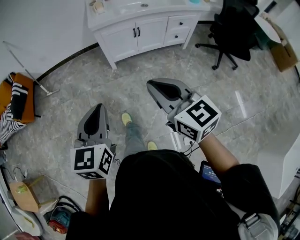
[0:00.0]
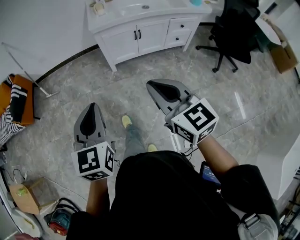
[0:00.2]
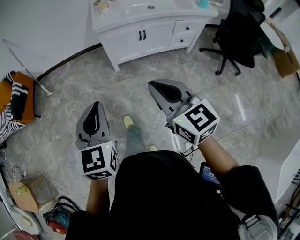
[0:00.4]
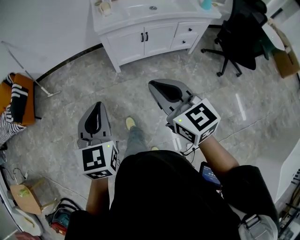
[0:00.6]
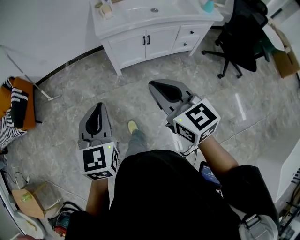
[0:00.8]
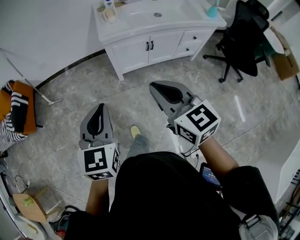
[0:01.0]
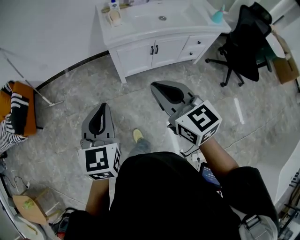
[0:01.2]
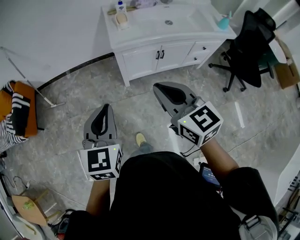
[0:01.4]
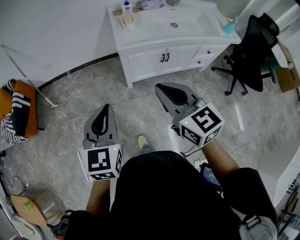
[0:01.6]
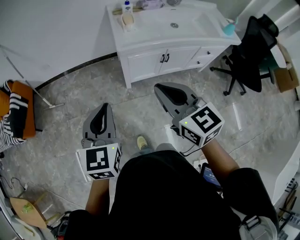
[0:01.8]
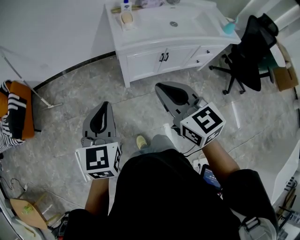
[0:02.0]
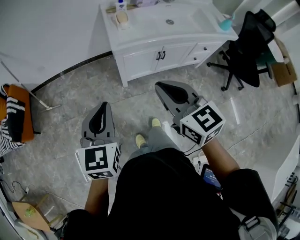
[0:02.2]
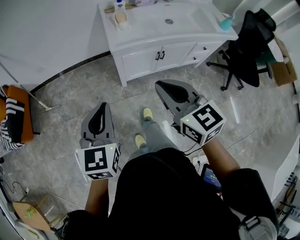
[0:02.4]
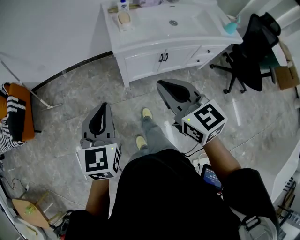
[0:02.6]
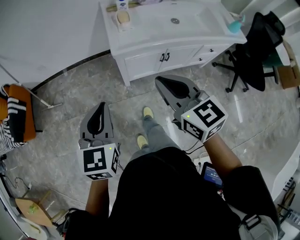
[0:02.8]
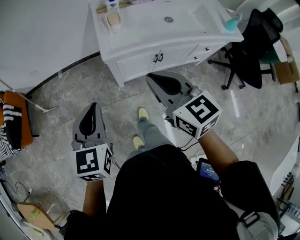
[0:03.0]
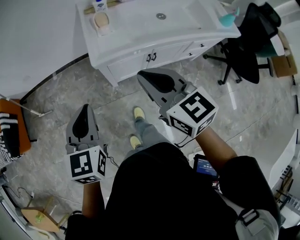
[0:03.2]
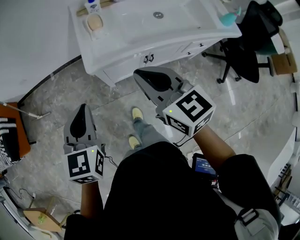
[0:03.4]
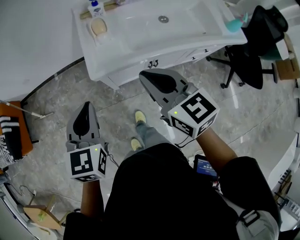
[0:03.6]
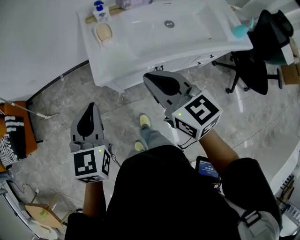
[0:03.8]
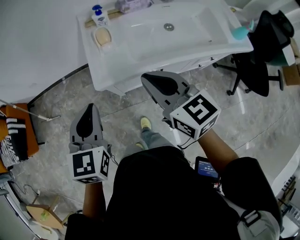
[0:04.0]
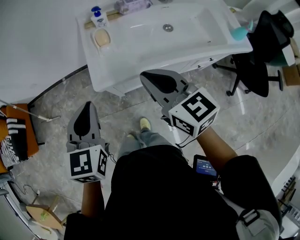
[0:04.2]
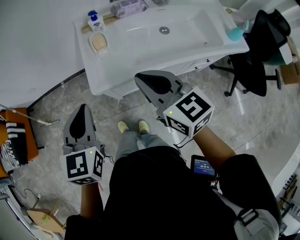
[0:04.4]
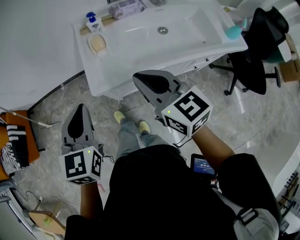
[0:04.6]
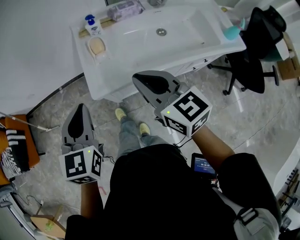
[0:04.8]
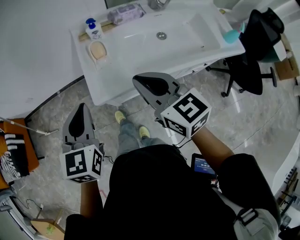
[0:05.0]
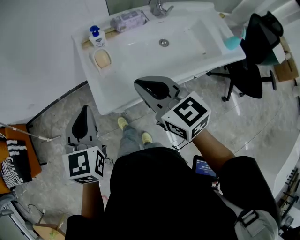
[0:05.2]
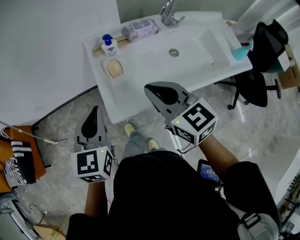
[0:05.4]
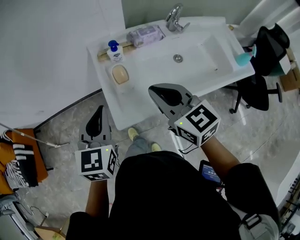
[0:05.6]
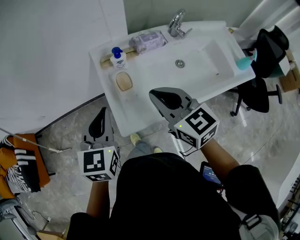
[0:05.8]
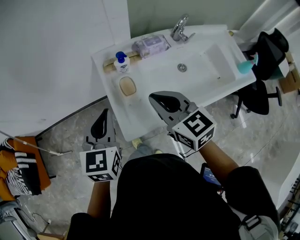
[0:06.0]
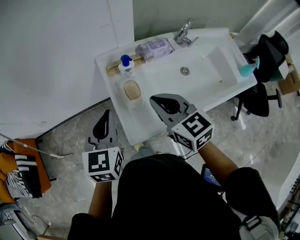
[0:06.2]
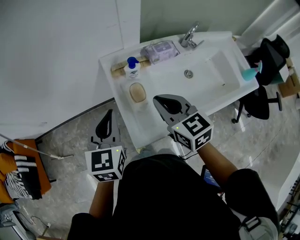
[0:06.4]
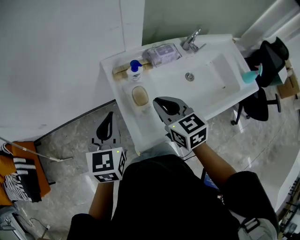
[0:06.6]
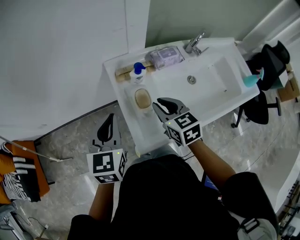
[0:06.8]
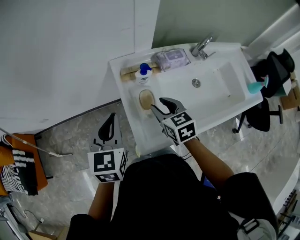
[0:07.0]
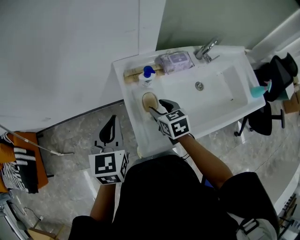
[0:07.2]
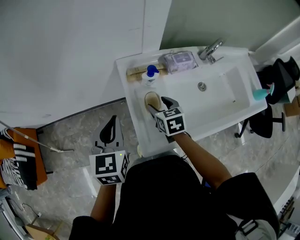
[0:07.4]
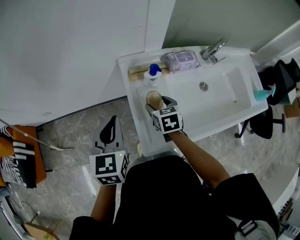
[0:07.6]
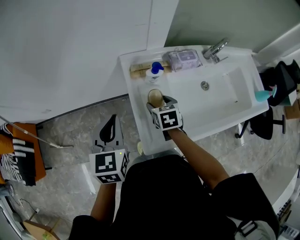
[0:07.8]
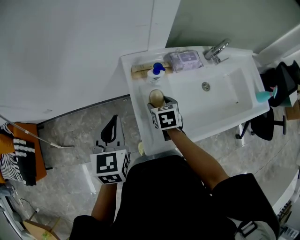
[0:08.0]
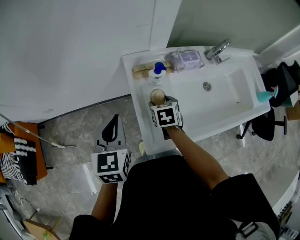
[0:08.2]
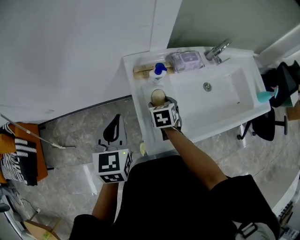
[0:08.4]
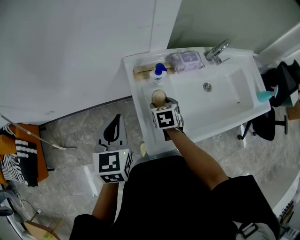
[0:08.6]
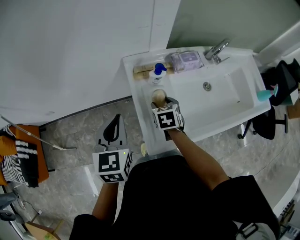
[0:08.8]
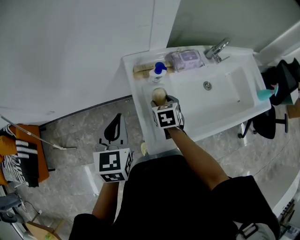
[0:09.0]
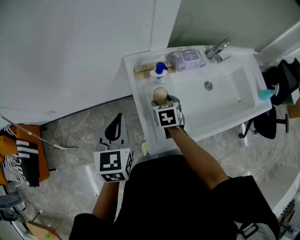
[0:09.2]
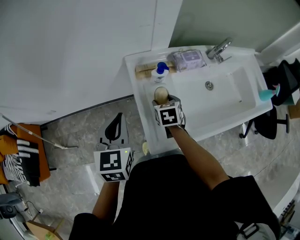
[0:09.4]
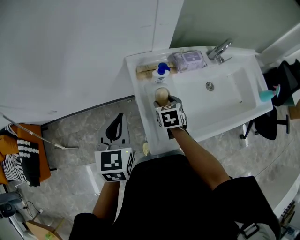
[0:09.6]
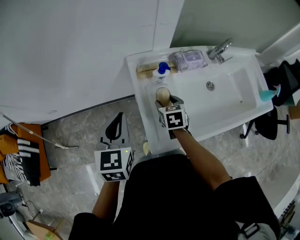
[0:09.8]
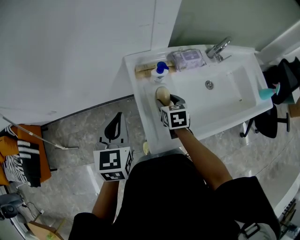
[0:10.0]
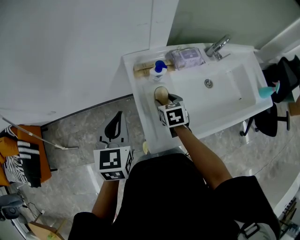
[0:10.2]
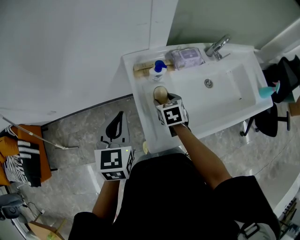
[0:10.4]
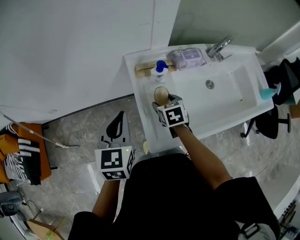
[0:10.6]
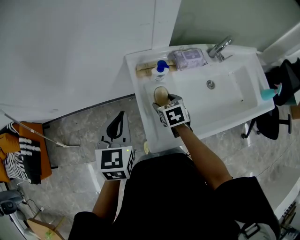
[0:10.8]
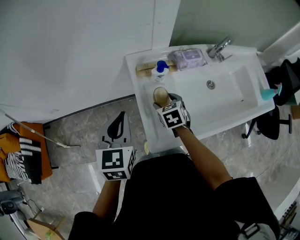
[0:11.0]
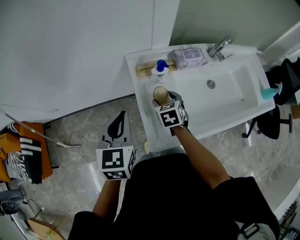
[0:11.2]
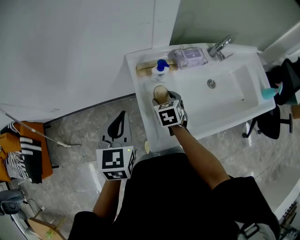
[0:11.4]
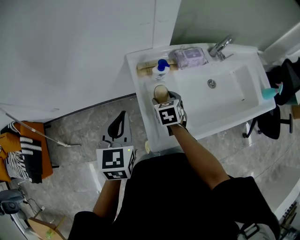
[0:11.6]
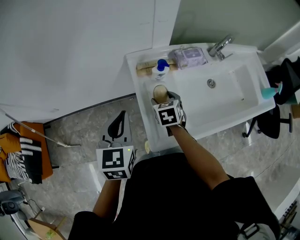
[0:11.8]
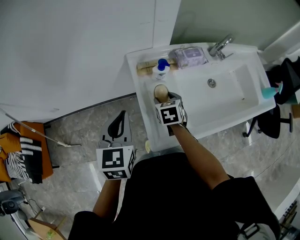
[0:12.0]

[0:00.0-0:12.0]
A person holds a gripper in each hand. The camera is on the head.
0:00.0 to 0:01.6: The grippers both shift forward by some 30 cm.
0:01.6 to 0:03.0: Both grippers travel together forward, some 15 cm.
0:03.0 to 0:04.4: Both grippers travel together forward and to the right, roughly 15 cm.
0:04.4 to 0:06.0: The grippers both shift forward by some 20 cm.
0:06.0 to 0:07.6: The right gripper goes about 25 cm downward and forward, turns by some 30 degrees, and opens. The left gripper travels to the left and forward by roughly 10 cm.
0:07.6 to 0:12.0: The grippers move only a little.

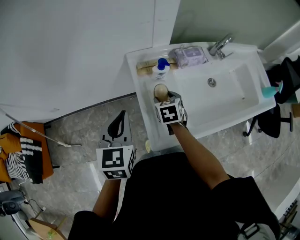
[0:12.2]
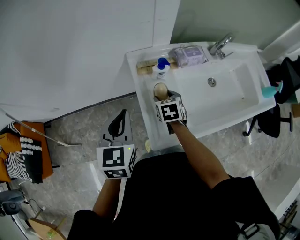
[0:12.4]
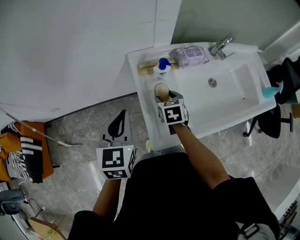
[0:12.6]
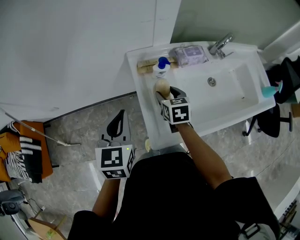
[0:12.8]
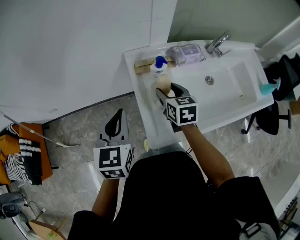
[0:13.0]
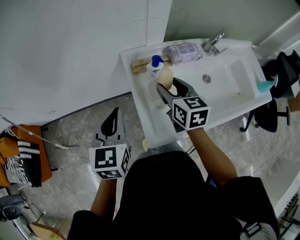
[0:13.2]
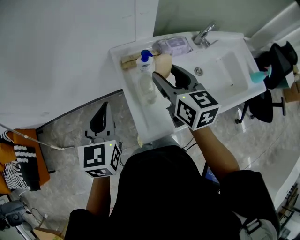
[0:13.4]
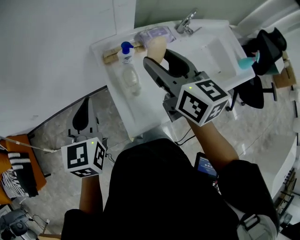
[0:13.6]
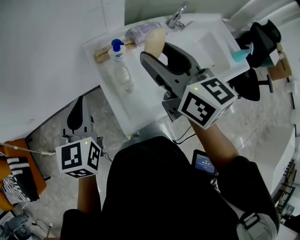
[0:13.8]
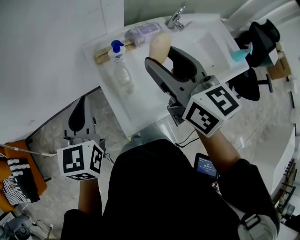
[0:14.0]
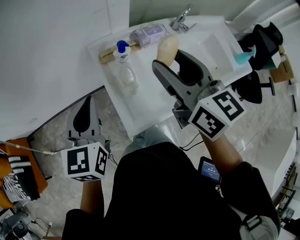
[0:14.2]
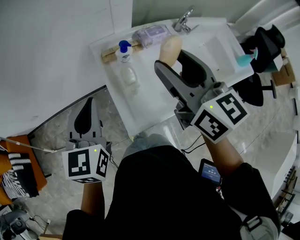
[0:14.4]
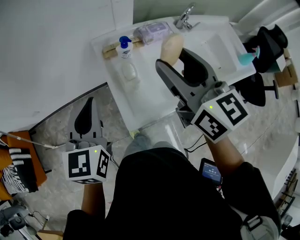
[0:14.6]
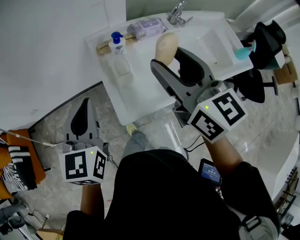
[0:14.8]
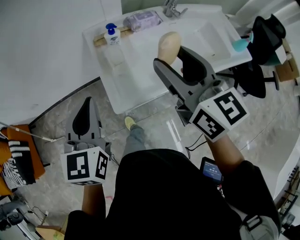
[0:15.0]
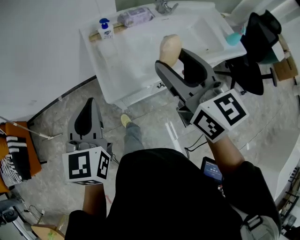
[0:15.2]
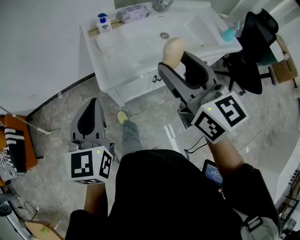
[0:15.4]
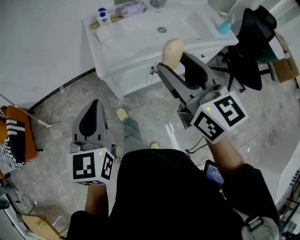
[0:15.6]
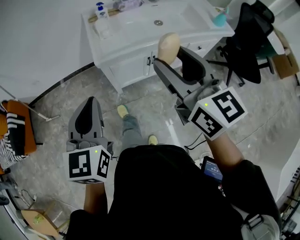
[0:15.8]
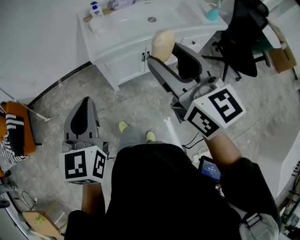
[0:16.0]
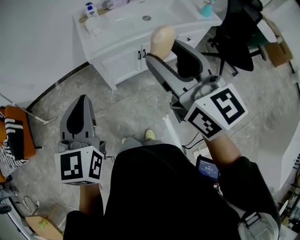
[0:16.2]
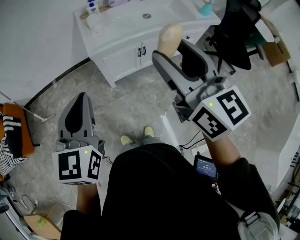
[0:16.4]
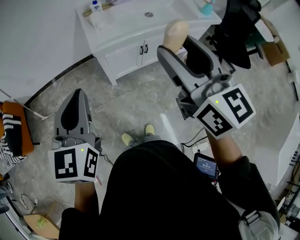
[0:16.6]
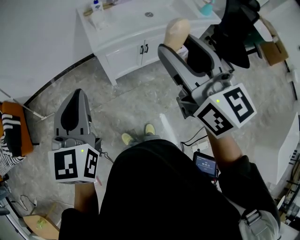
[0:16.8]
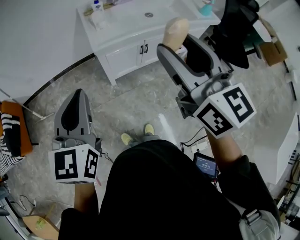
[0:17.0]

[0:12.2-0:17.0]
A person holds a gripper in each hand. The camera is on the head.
0:12.2 to 0:13.8: The right gripper heads upward, covering roughly 30 cm, and tips its fingers upward by roughly 40 degrees.
0:13.8 to 0:15.4: The two grippers go about 30 cm backward.
0:15.4 to 0:17.0: Both grippers travel together backward, approximately 20 cm.

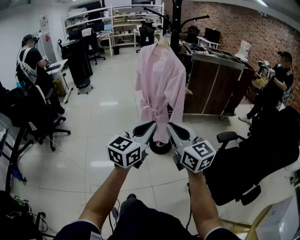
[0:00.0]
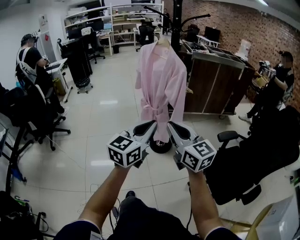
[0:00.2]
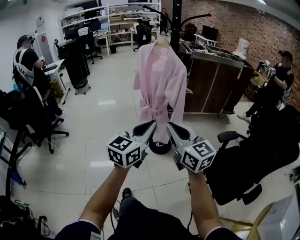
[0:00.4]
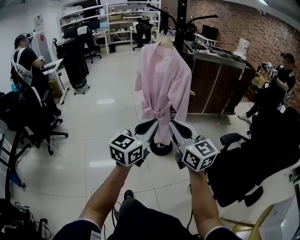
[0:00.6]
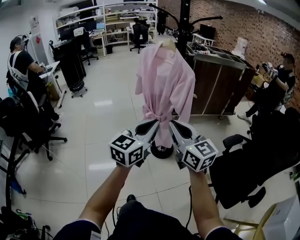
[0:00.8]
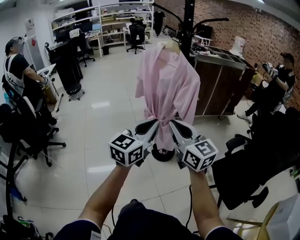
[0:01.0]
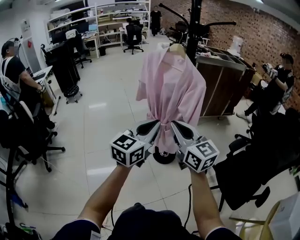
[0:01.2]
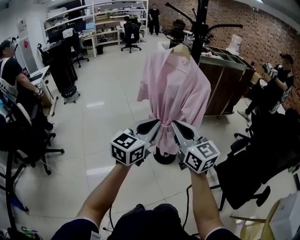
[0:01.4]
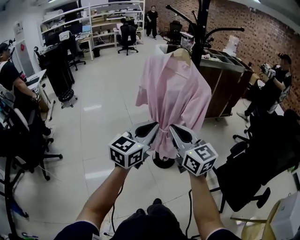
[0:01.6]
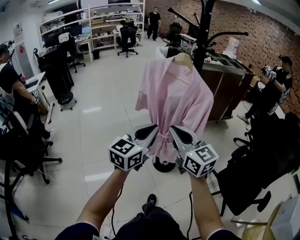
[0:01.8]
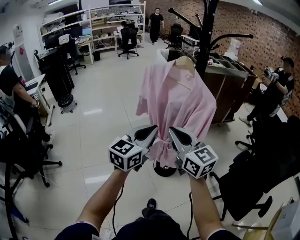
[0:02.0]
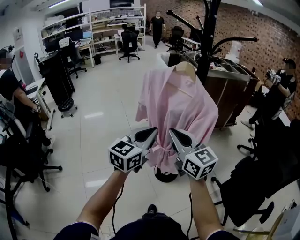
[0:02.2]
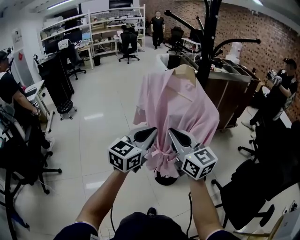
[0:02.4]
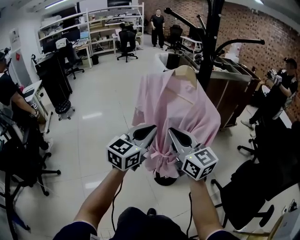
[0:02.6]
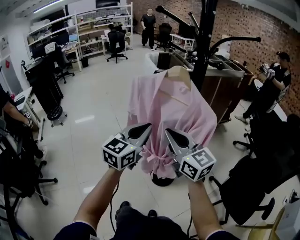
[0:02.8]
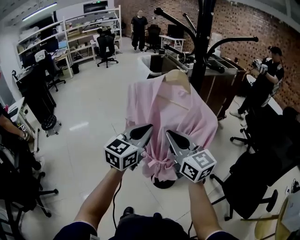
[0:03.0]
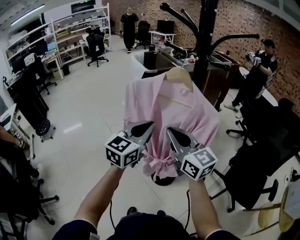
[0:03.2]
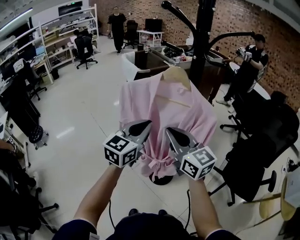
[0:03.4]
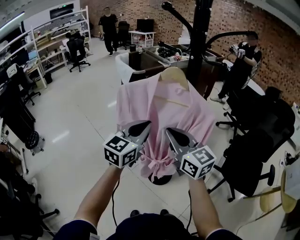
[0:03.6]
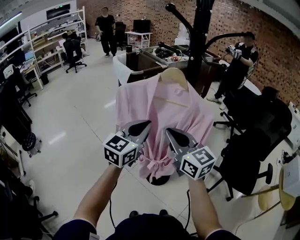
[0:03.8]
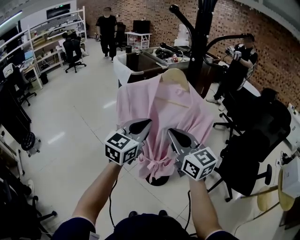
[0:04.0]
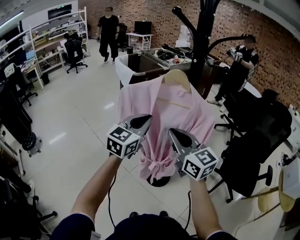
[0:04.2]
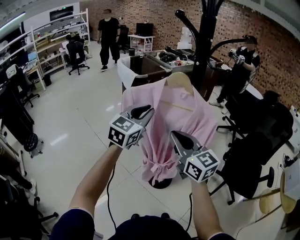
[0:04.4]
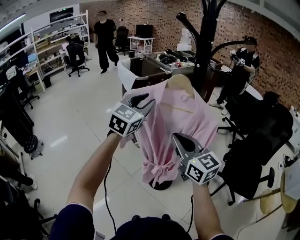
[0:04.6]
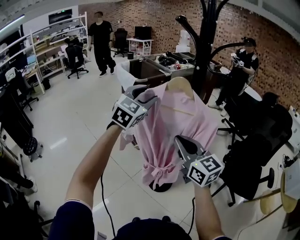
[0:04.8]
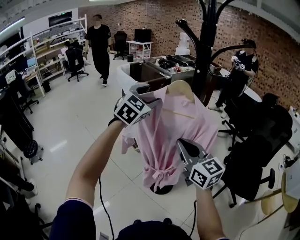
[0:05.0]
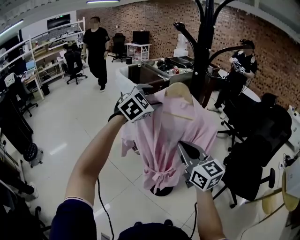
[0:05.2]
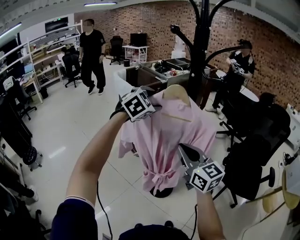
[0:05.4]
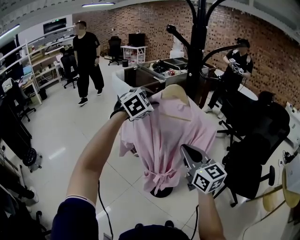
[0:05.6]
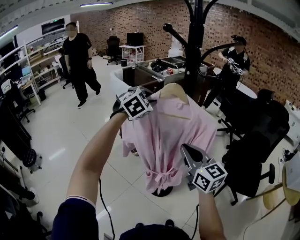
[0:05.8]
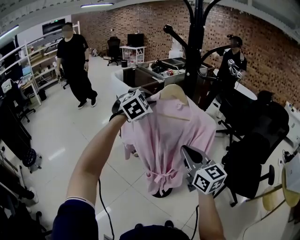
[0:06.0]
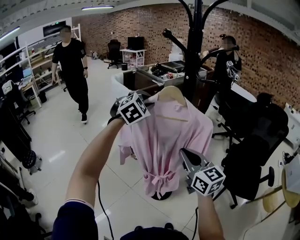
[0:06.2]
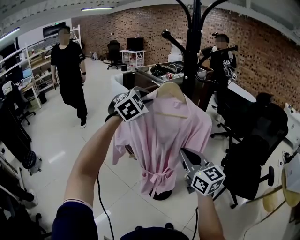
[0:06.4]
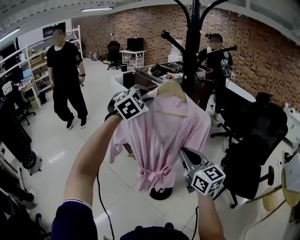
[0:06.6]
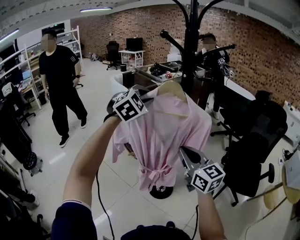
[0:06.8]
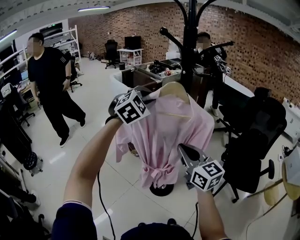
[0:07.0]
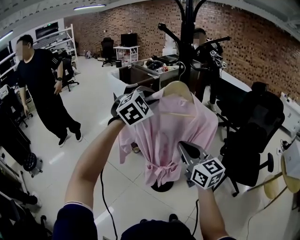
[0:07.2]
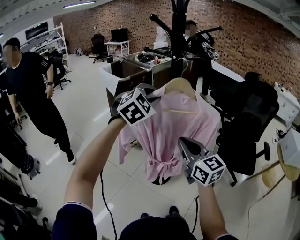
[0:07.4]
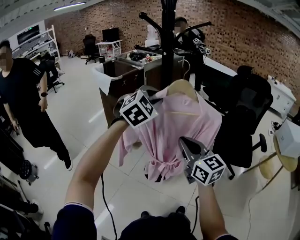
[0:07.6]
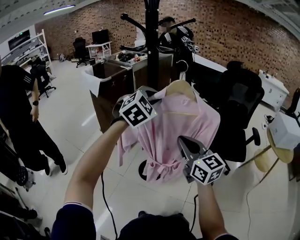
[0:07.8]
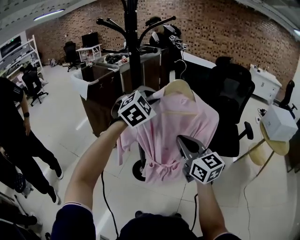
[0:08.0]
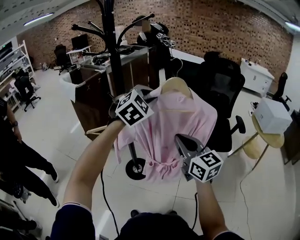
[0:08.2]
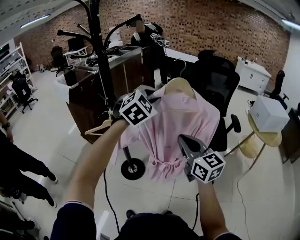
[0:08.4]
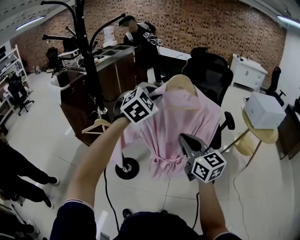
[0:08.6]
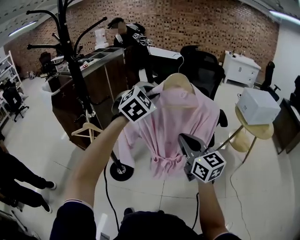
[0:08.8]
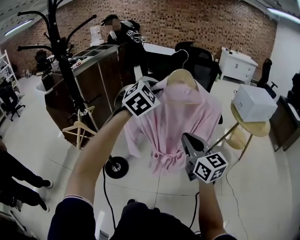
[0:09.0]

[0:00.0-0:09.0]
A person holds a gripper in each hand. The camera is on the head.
0:00.0 to 0:01.6: Both grippers travel together forward and to the left, roughly 25 cm.
0:01.6 to 0:03.0: Both grippers travel together forward, roughly 20 cm.
0:03.0 to 0:04.4: The left gripper shifts roughly 10 cm forward.
0:04.4 to 0:06.0: The right gripper is displaced to the right by approximately 5 cm, while the left gripper heads forward, covering roughly 10 cm, swivels some 40 degrees, and opens and closes again.
0:06.0 to 0:07.6: The right gripper moves backward, some 10 cm; the left gripper travels backward and to the right by approximately 15 cm.
0:07.6 to 0:09.0: The pair of grippers is taken to the right, roughly 40 cm. The right gripper turns by approximately 20 degrees.
